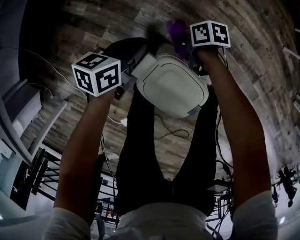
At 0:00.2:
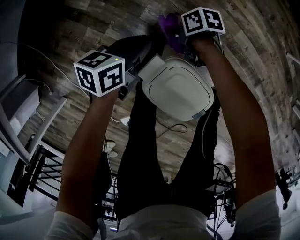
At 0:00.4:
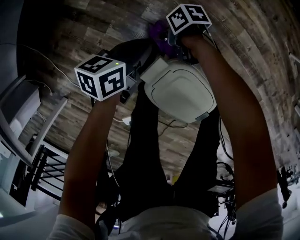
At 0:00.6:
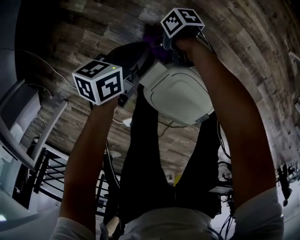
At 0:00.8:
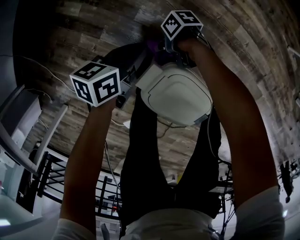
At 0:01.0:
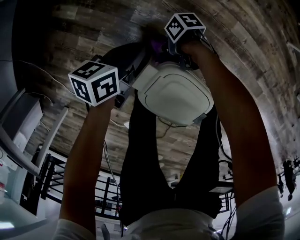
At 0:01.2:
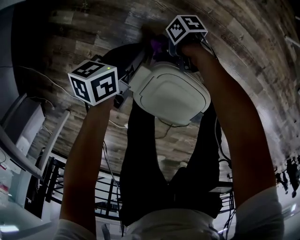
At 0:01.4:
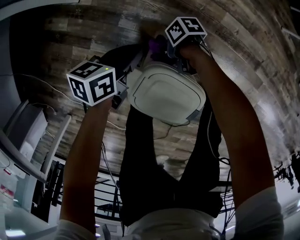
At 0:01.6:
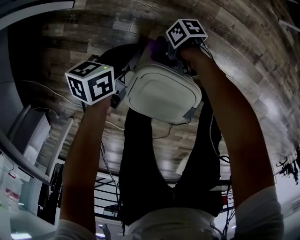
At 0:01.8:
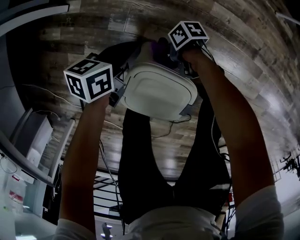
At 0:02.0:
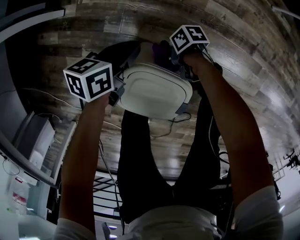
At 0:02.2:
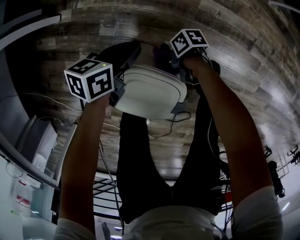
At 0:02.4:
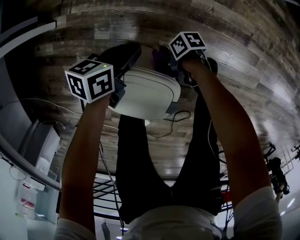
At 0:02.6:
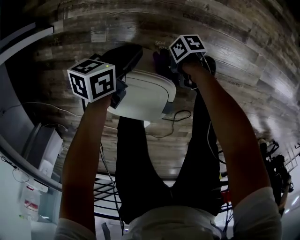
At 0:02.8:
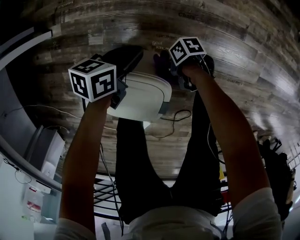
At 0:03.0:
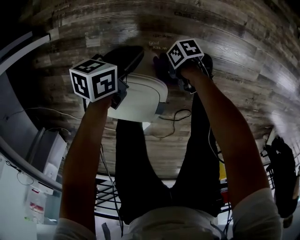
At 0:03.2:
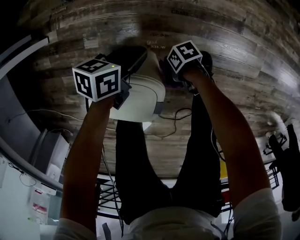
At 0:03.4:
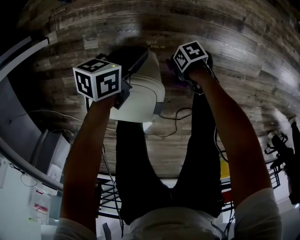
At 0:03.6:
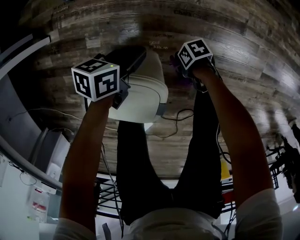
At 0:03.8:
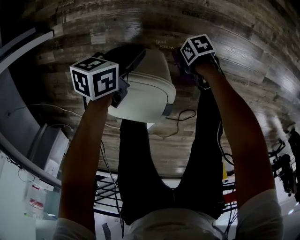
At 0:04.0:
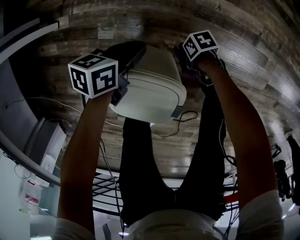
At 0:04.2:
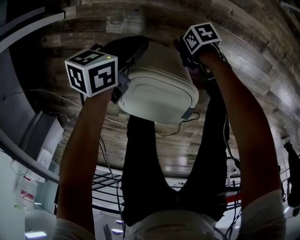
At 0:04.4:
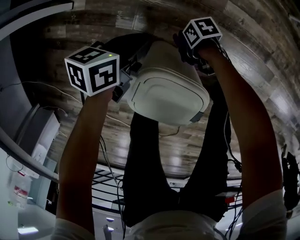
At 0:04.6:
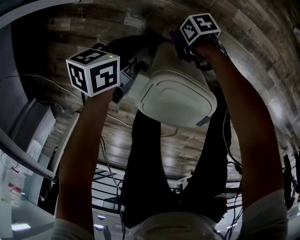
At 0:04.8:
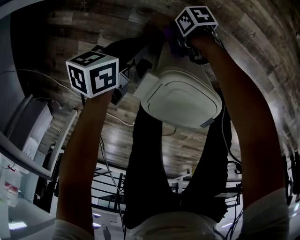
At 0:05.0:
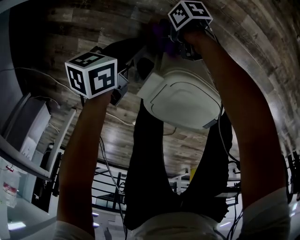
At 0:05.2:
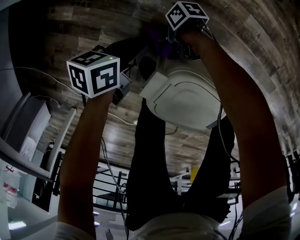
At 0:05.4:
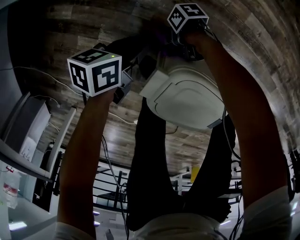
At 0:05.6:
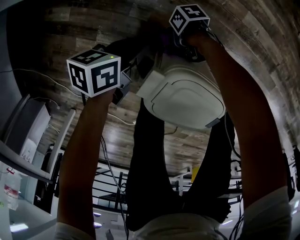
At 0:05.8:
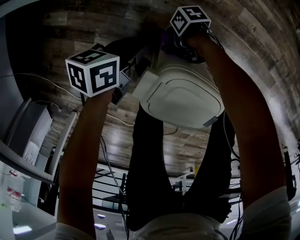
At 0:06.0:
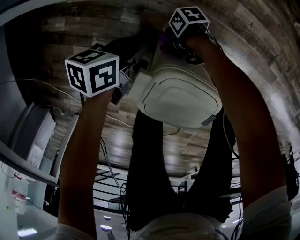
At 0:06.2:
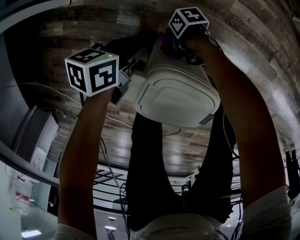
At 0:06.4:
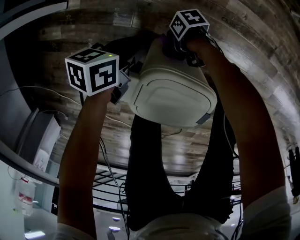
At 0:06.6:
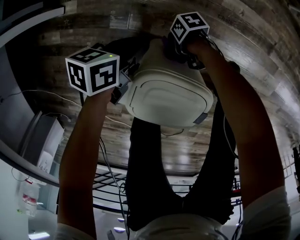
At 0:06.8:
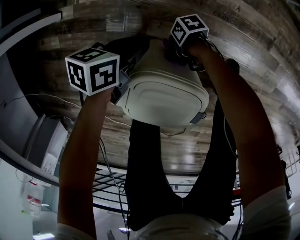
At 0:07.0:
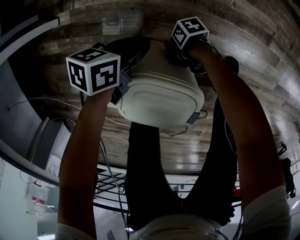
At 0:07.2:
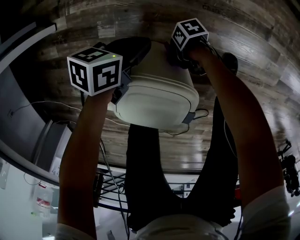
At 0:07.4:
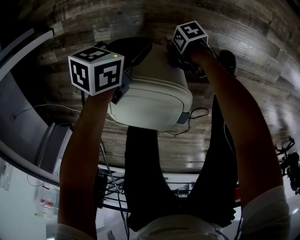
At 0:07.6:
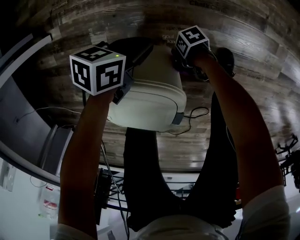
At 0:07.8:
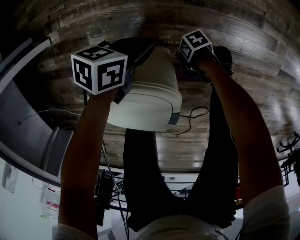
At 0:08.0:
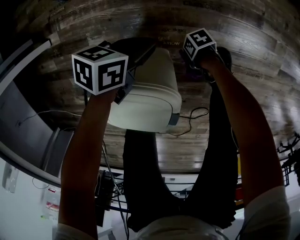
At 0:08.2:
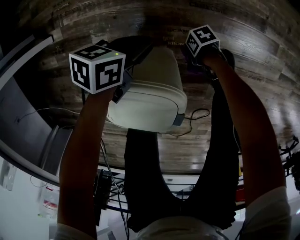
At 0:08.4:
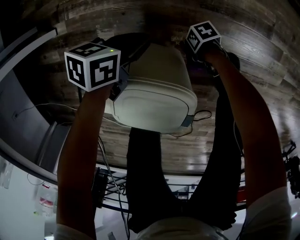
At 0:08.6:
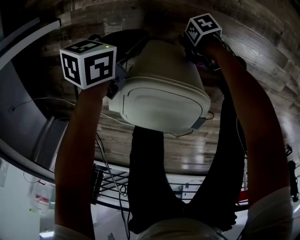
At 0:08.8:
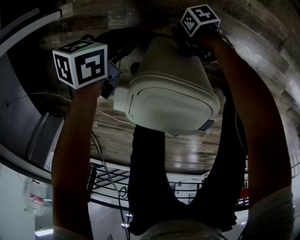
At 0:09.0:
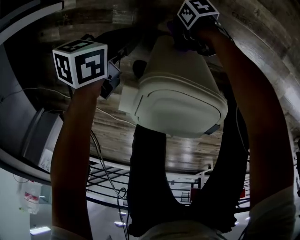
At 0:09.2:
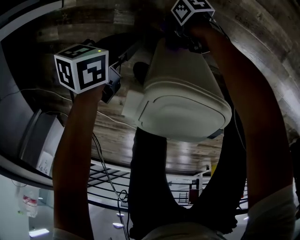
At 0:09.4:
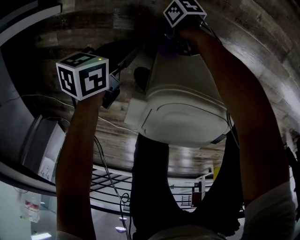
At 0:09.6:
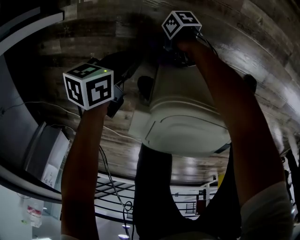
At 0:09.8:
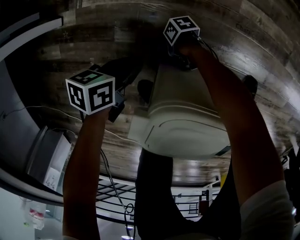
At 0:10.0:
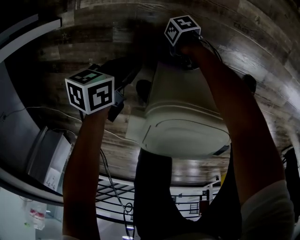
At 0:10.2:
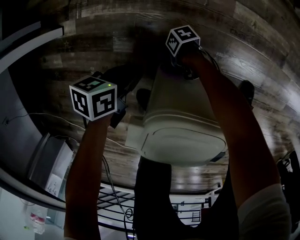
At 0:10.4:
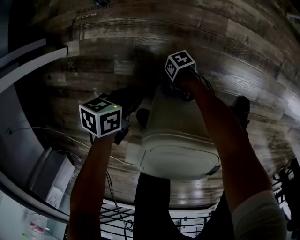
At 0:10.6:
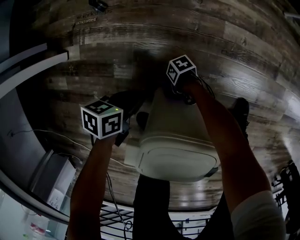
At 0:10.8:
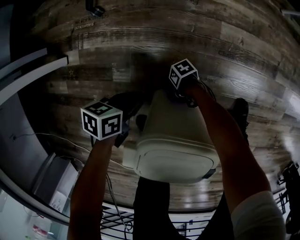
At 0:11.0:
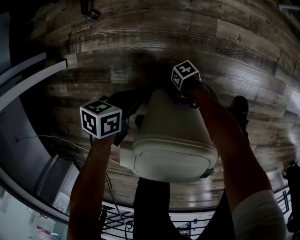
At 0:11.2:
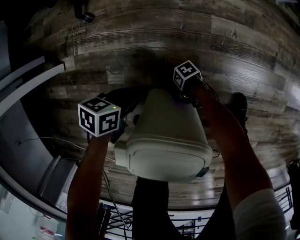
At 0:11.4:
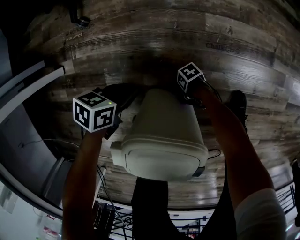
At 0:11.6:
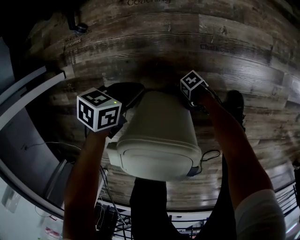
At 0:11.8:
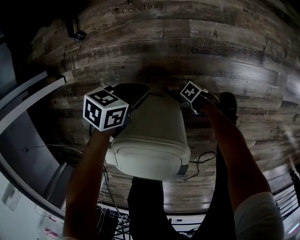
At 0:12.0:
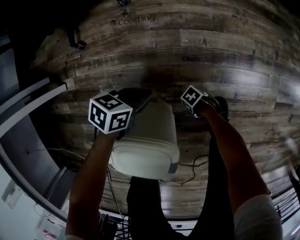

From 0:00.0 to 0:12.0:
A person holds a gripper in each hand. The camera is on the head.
From 0:00.0 to 0:01.6: The left gripper ends up about 10 cm from where it was.
From 0:01.6 to 0:03.0: The left gripper moves approximately 20 cm.
From 0:03.0 to 0:04.4: The left gripper moves some 15 cm.
From 0:06.0 to 0:07.6: The left gripper shifts by approximately 20 cm, and rotates approximately 20 degrees.
From 0:07.6 to 0:09.0: The left gripper changes place by roughly 20 cm.
From 0:09.0 to 0:10.4: The left gripper goes about 5 cm downward.
From 0:10.4 to 0:12.0: The left gripper moves some 25 cm, and turns by roughly 20 degrees.

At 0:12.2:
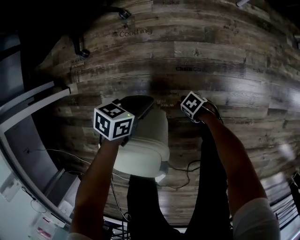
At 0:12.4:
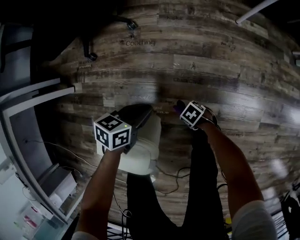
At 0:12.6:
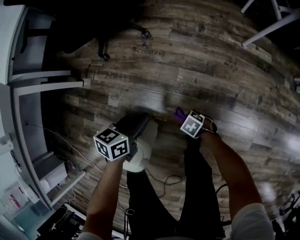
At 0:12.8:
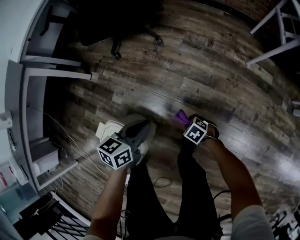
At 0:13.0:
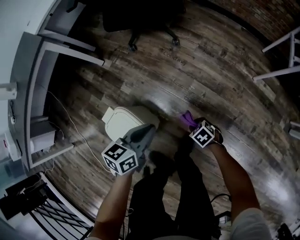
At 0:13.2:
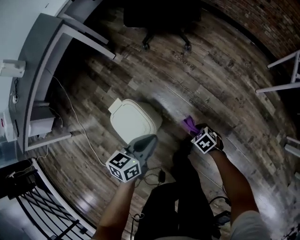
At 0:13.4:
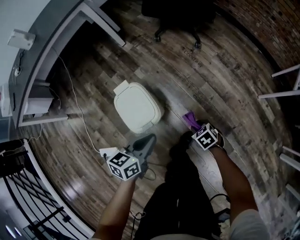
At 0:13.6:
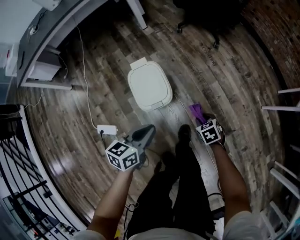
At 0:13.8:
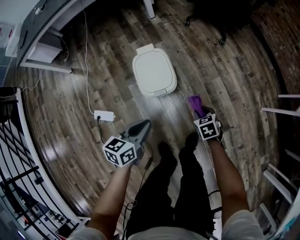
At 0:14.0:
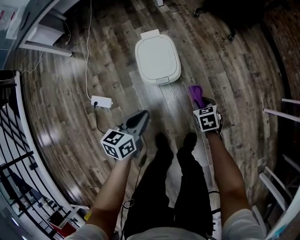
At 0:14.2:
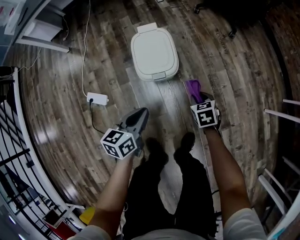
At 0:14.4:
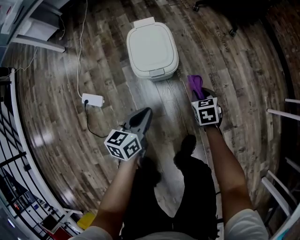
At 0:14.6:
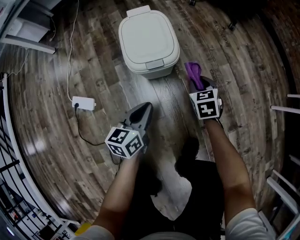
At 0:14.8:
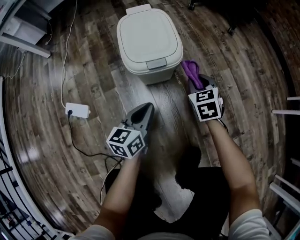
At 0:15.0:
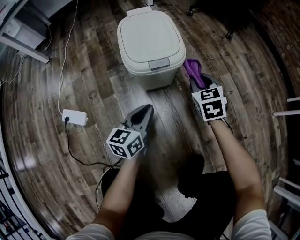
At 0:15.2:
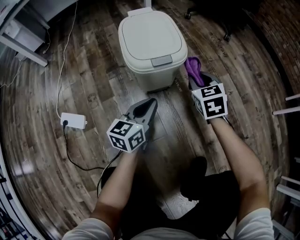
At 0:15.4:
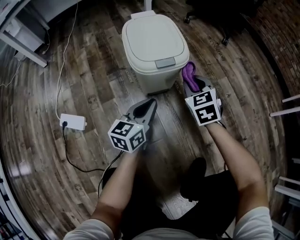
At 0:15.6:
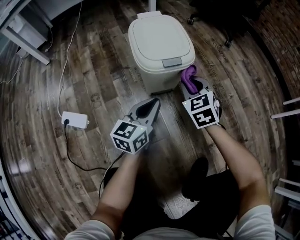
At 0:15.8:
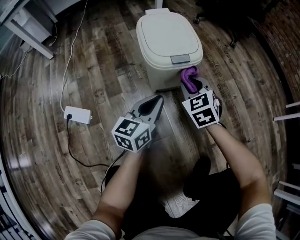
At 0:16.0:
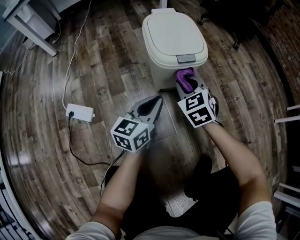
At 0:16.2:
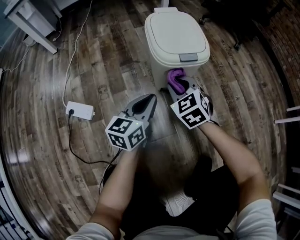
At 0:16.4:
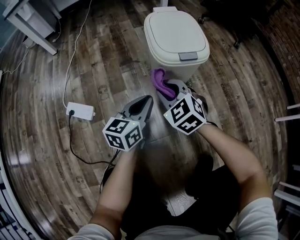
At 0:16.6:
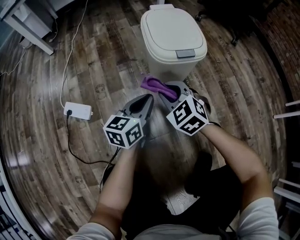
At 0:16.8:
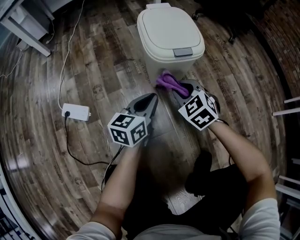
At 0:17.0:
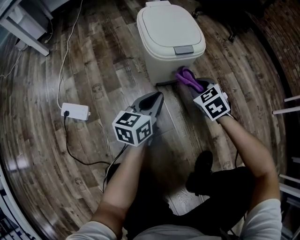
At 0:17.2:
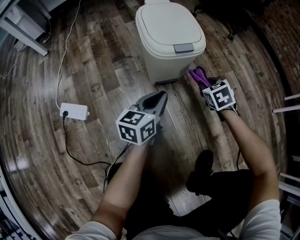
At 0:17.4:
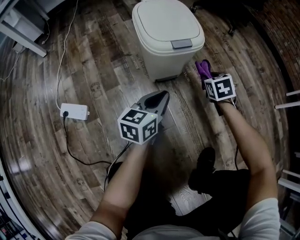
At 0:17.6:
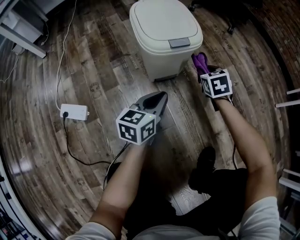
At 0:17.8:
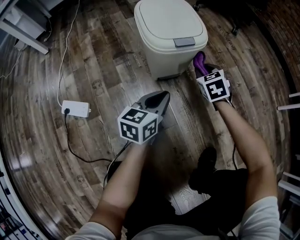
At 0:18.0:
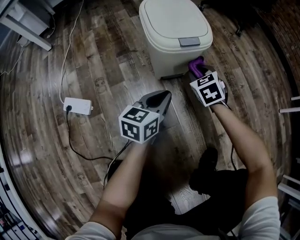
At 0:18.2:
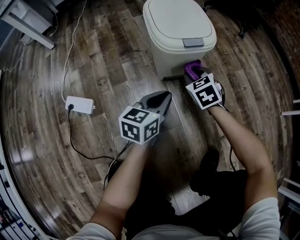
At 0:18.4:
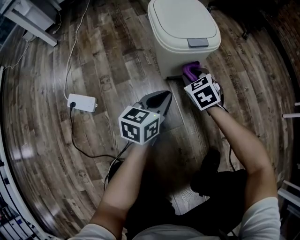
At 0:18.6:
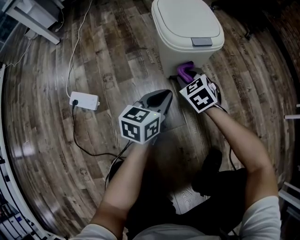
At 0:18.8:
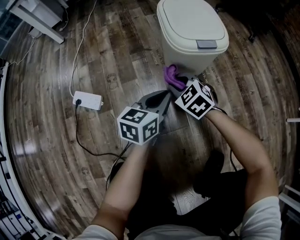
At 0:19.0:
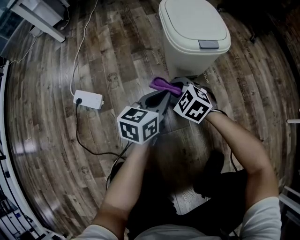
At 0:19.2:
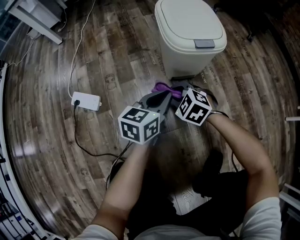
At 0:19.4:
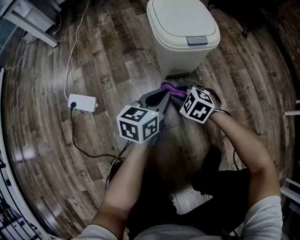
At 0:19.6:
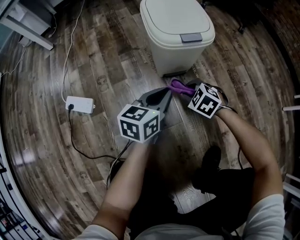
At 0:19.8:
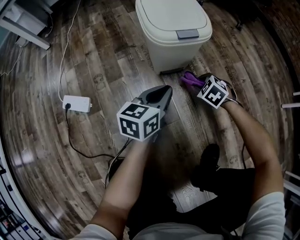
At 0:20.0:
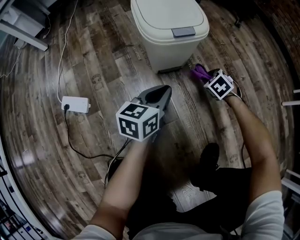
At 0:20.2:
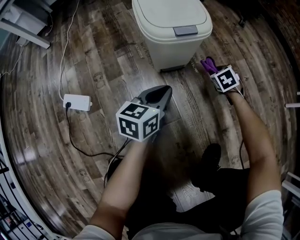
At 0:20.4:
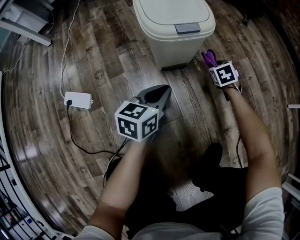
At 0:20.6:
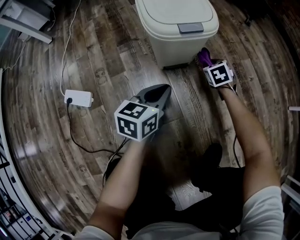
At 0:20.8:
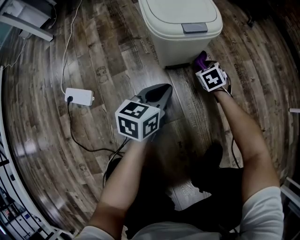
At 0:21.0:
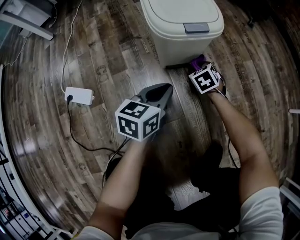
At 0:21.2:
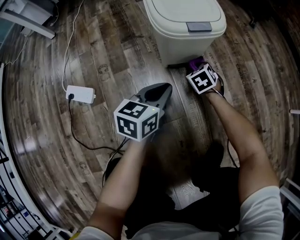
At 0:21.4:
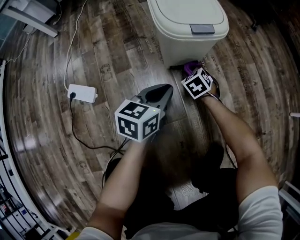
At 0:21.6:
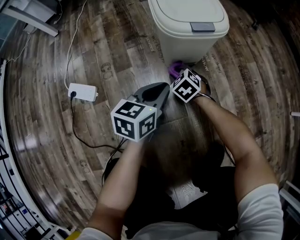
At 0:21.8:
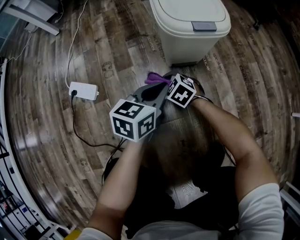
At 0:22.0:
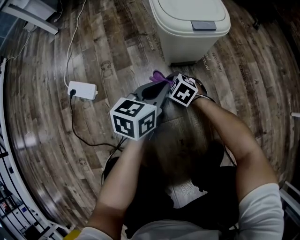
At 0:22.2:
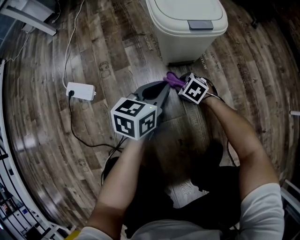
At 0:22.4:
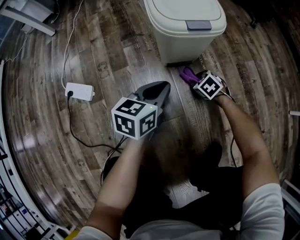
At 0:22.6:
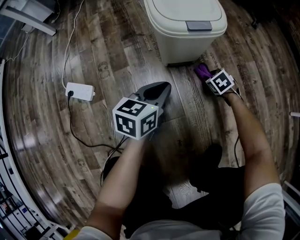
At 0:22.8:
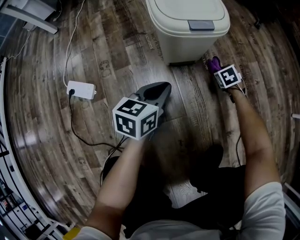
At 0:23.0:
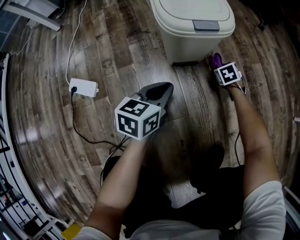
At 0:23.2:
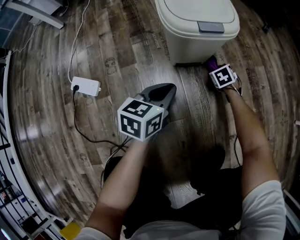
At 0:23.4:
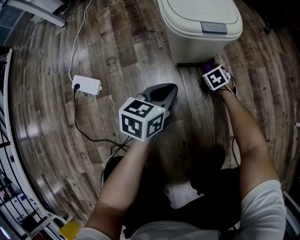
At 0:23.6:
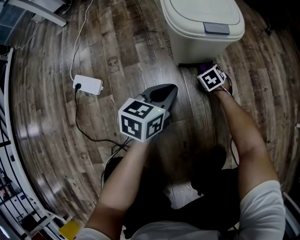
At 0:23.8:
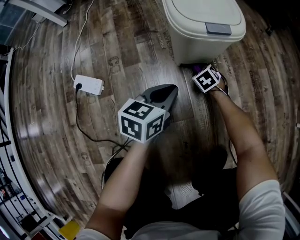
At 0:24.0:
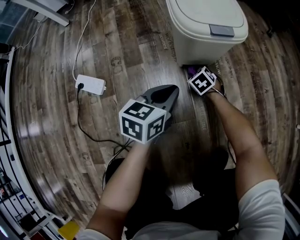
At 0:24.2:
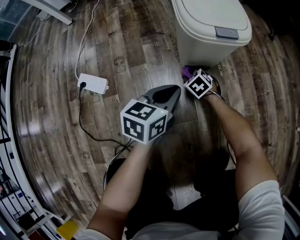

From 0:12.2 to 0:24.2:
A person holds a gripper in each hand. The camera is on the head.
From 0:12.2 to 0:13.8: The left gripper changes place by some 40 cm, and turns by roughly 90 degrees.
From 0:13.8 to 0:15.2: The left gripper moves downward, roughly 30 cm, and changes its angle by some 20 degrees.
From 0:15.2 to 0:16.6: The left gripper ends up roughly 10 cm from where it was.
From 0:16.6 to 0:18.2: The left gripper shifts by approximately 5 cm.
